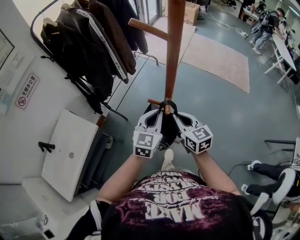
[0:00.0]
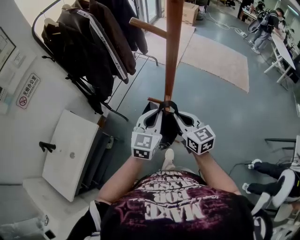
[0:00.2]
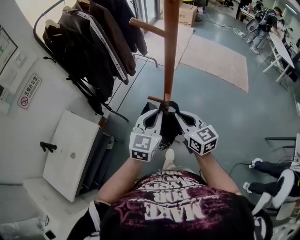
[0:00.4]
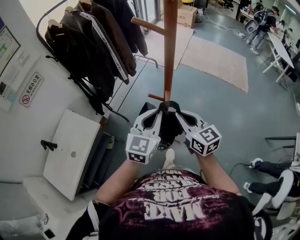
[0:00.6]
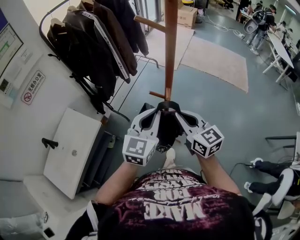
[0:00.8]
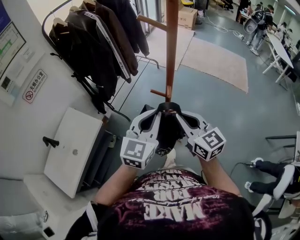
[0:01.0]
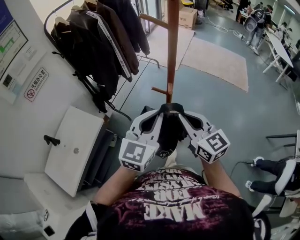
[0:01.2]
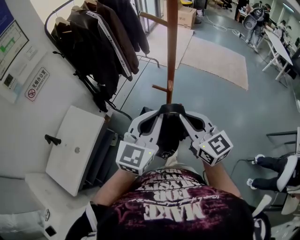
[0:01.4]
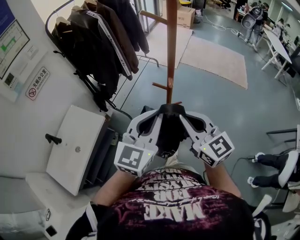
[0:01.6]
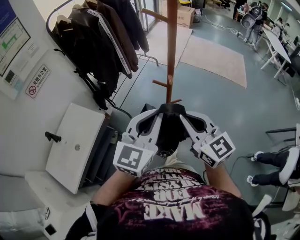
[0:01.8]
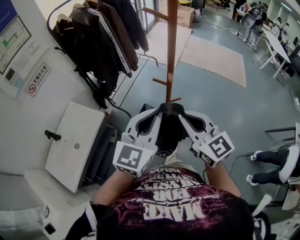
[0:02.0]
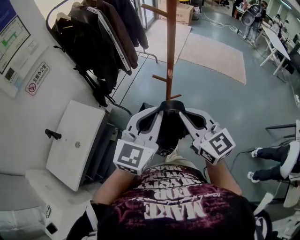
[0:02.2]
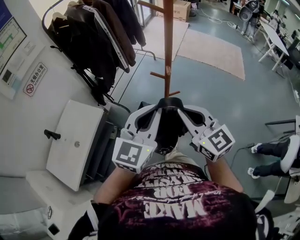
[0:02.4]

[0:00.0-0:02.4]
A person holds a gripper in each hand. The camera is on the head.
0:00.0 to 0:01.2: The left gripper heads backward and upward, covering some 20 cm. Meanwhile the right gripper goes roughly 20 cm upward and backward.
0:01.2 to 0:02.4: The grippers both shift backward by some 5 cm.

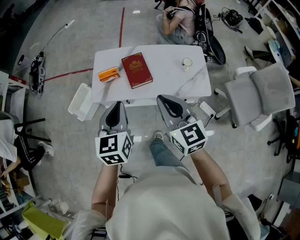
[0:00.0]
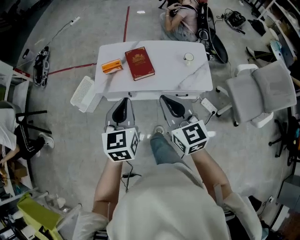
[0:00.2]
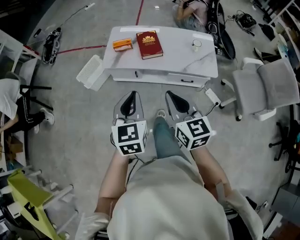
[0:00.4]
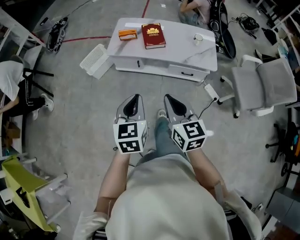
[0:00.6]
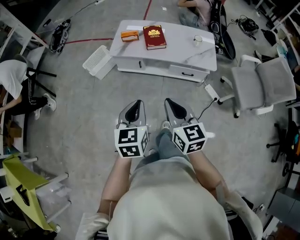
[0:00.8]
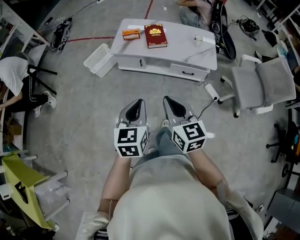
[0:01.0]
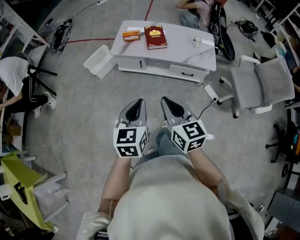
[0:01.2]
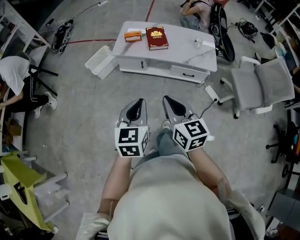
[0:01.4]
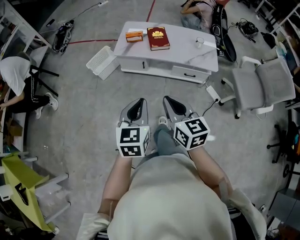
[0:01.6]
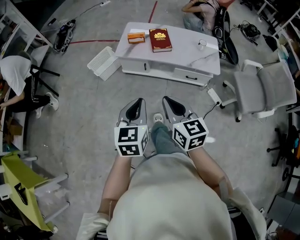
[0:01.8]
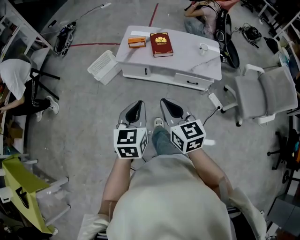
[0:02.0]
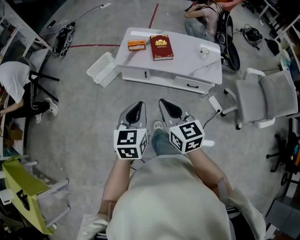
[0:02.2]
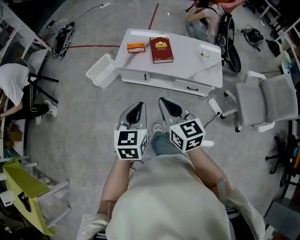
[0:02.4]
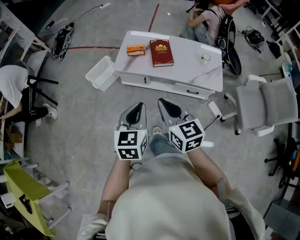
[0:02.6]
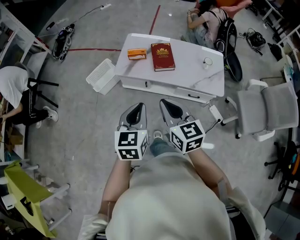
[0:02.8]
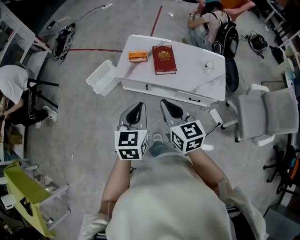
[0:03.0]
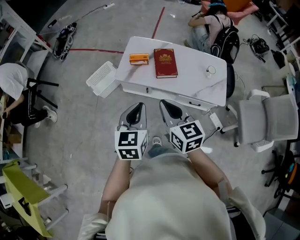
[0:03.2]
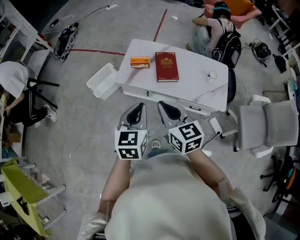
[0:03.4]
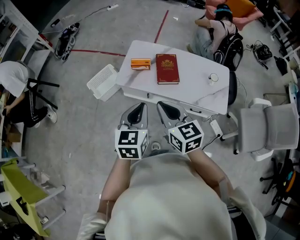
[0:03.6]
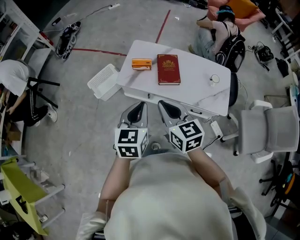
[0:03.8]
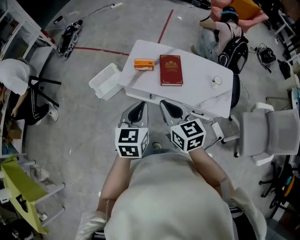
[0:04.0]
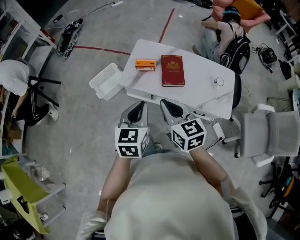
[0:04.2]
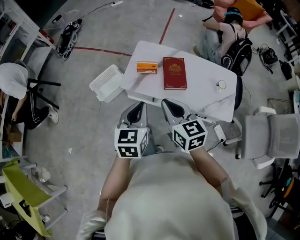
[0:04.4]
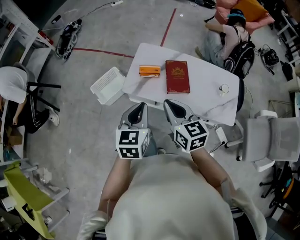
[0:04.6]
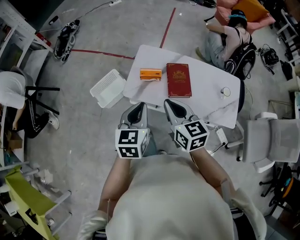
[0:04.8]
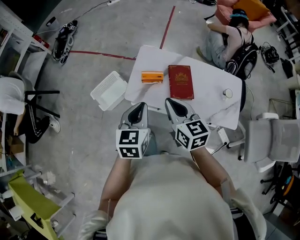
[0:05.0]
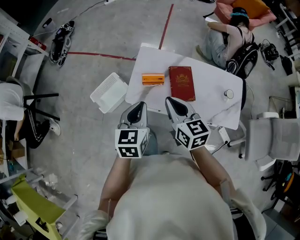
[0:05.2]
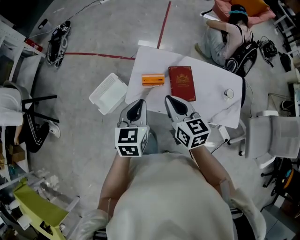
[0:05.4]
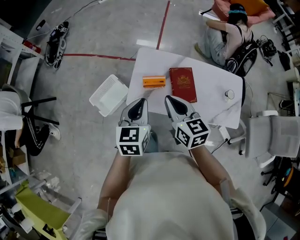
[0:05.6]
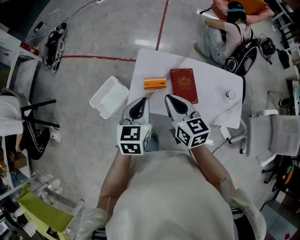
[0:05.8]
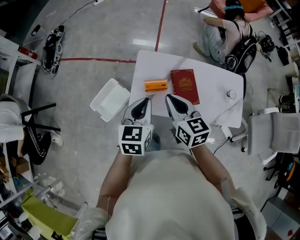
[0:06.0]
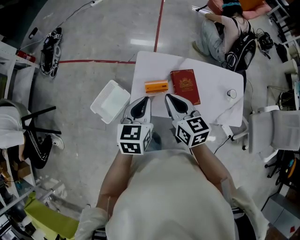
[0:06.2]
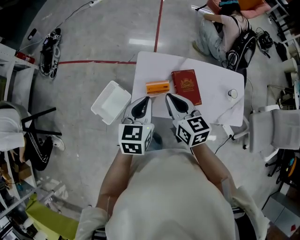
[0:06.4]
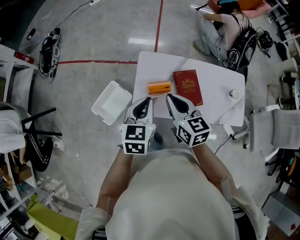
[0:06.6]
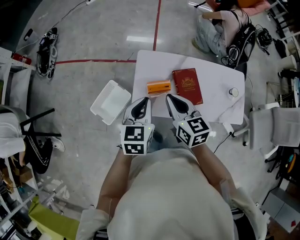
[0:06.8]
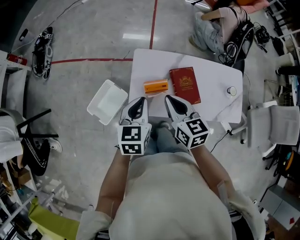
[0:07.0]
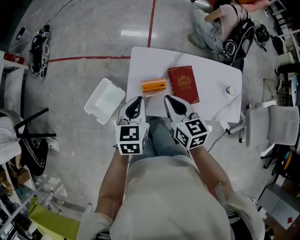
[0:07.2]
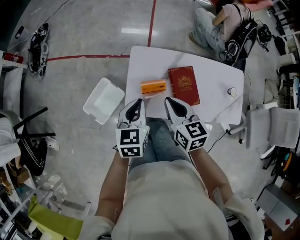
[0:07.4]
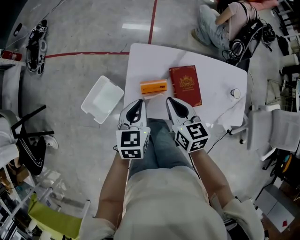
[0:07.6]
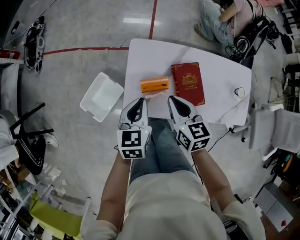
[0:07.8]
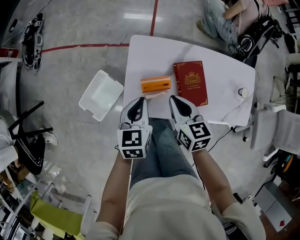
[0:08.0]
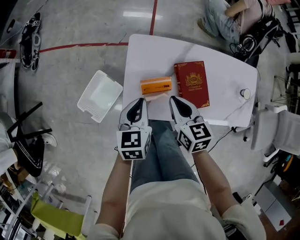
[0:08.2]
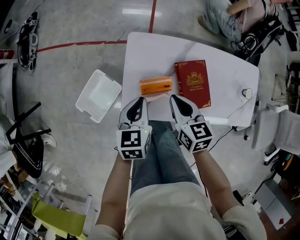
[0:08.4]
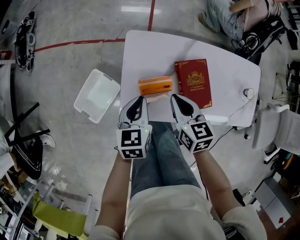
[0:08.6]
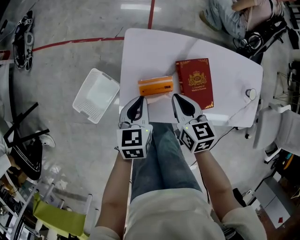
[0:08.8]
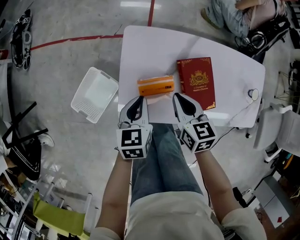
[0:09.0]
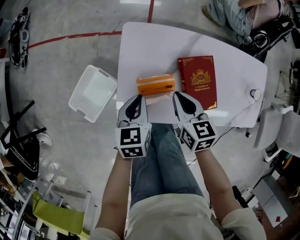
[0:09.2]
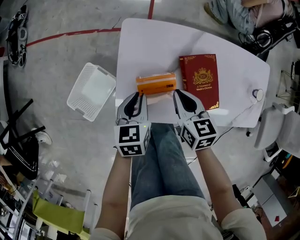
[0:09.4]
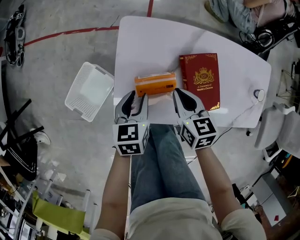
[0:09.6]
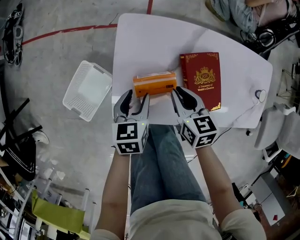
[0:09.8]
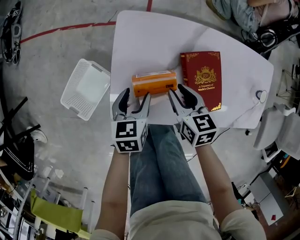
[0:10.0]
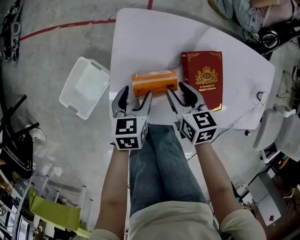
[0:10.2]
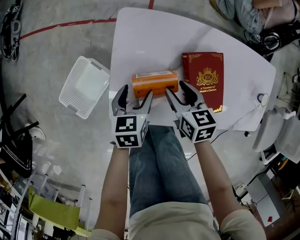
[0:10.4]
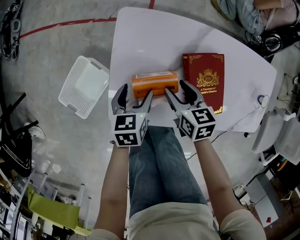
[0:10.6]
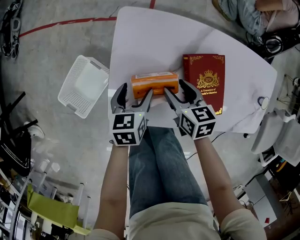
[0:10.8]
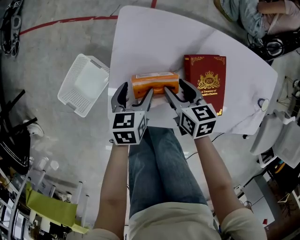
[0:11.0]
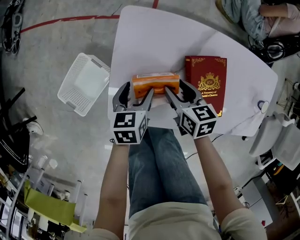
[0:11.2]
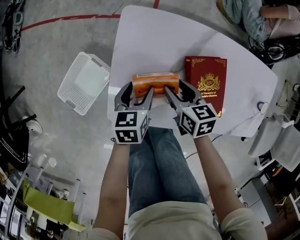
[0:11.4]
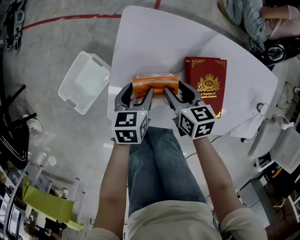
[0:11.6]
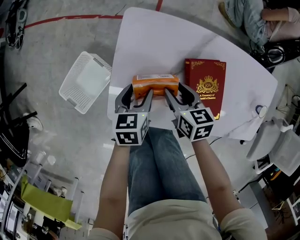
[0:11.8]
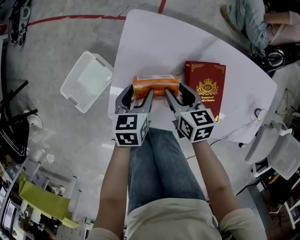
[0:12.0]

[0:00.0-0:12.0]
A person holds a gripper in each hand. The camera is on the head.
0:00.0 to 0:01.6: Both grippers travel together backward, roughly 35 cm.
0:01.6 to 0:03.0: The two grippers go roughly 25 cm forward.
0:03.0 to 0:04.4: Both grippers move forward, some 15 cm.
0:04.4 to 0:06.0: The two grippers go some 25 cm forward.
0:06.0 to 0:07.6: Both grippers travel together downward and forward, approximately 10 cm.
0:07.6 to 0:09.0: The grippers both shift downward by about 15 cm.
0:09.0 to 0:10.4: Both grippers move downward, roughly 10 cm. The right gripper opens; the left gripper opens.
0:10.4 to 0:12.0: The grippers stay close to where they were, moving slightly.

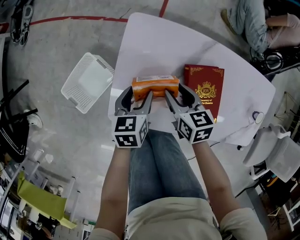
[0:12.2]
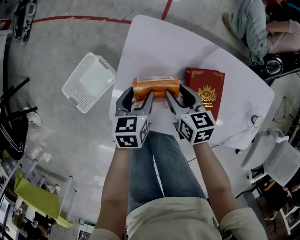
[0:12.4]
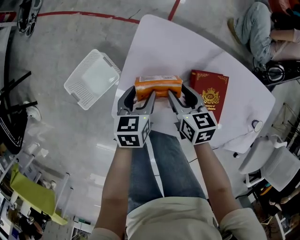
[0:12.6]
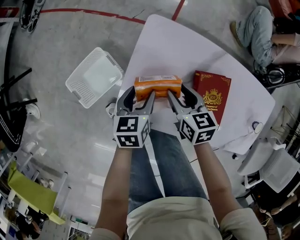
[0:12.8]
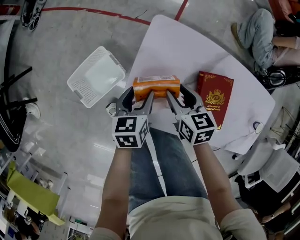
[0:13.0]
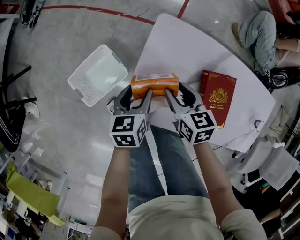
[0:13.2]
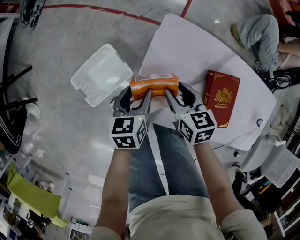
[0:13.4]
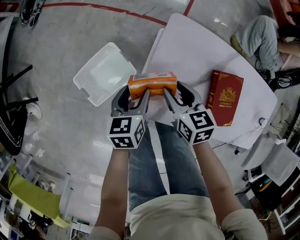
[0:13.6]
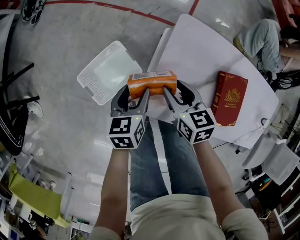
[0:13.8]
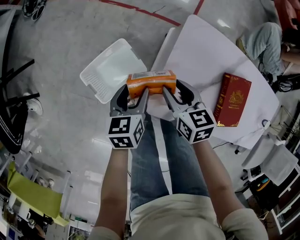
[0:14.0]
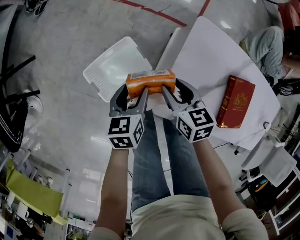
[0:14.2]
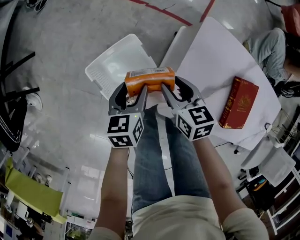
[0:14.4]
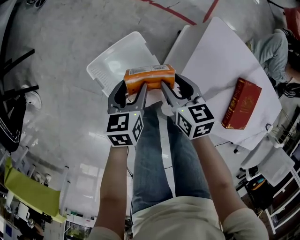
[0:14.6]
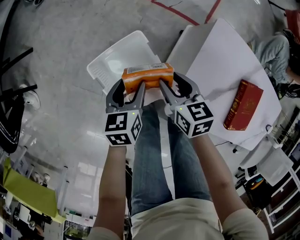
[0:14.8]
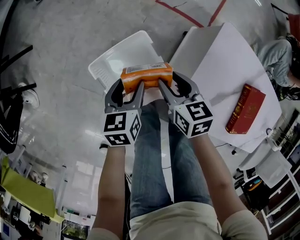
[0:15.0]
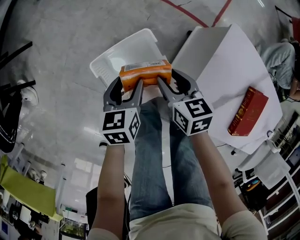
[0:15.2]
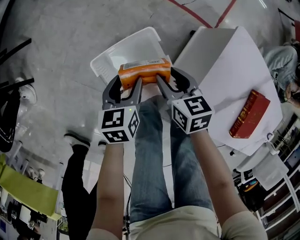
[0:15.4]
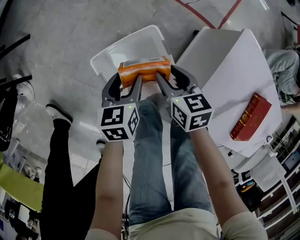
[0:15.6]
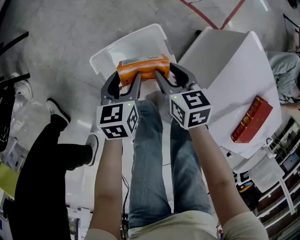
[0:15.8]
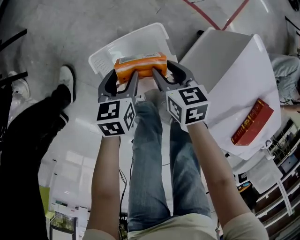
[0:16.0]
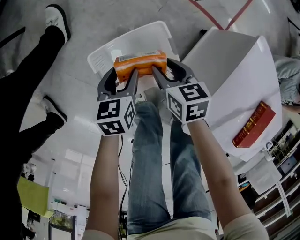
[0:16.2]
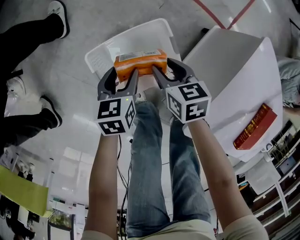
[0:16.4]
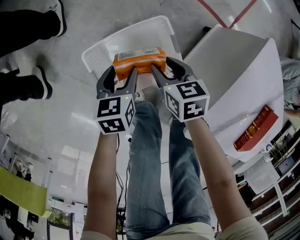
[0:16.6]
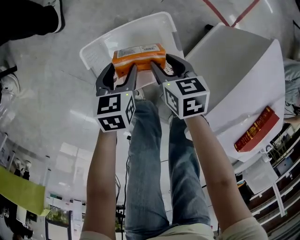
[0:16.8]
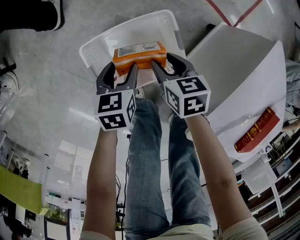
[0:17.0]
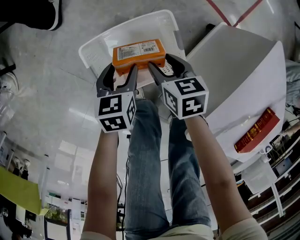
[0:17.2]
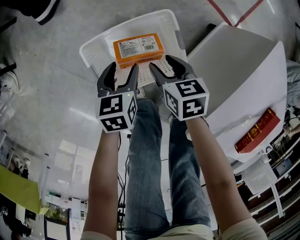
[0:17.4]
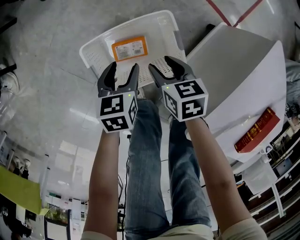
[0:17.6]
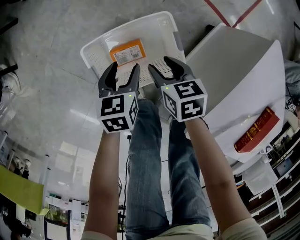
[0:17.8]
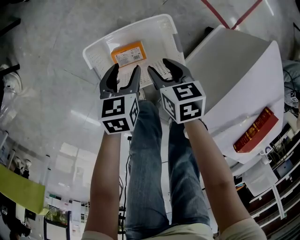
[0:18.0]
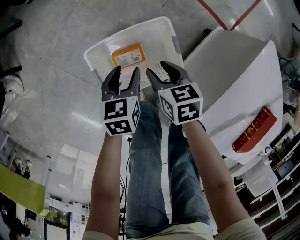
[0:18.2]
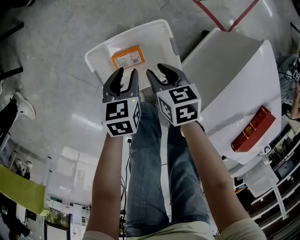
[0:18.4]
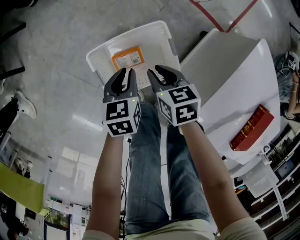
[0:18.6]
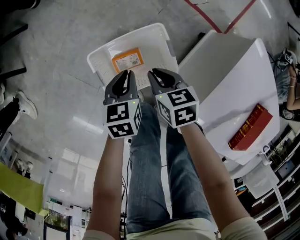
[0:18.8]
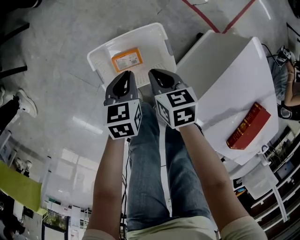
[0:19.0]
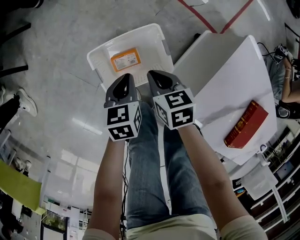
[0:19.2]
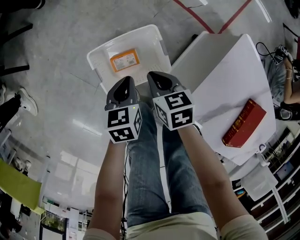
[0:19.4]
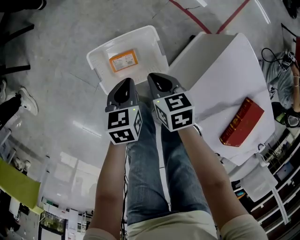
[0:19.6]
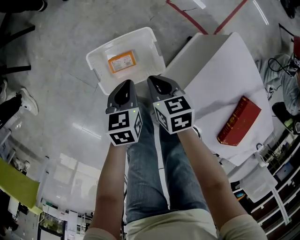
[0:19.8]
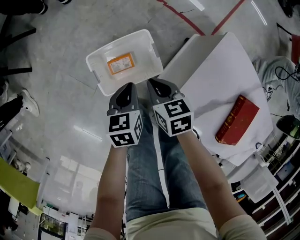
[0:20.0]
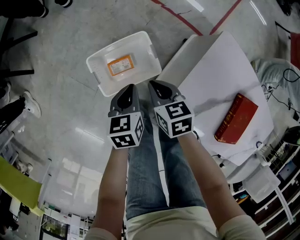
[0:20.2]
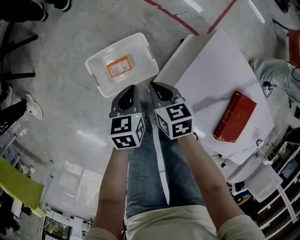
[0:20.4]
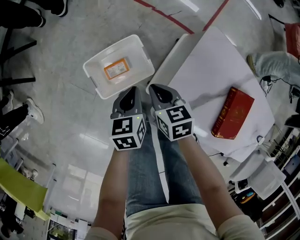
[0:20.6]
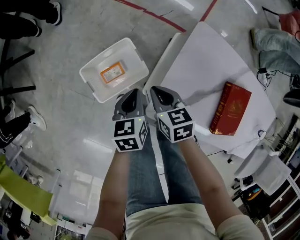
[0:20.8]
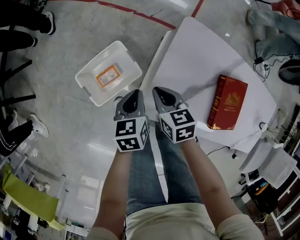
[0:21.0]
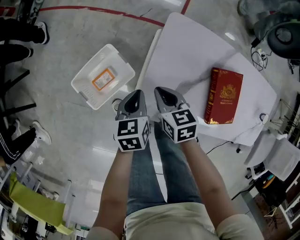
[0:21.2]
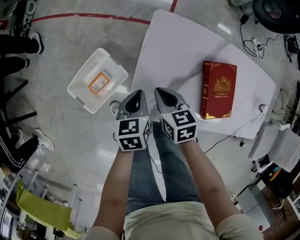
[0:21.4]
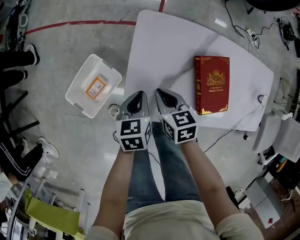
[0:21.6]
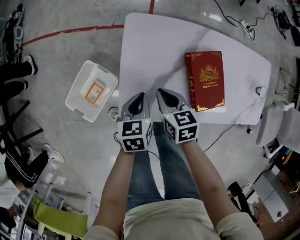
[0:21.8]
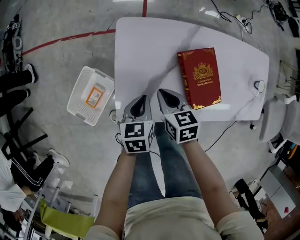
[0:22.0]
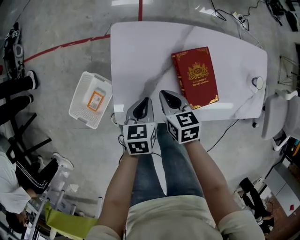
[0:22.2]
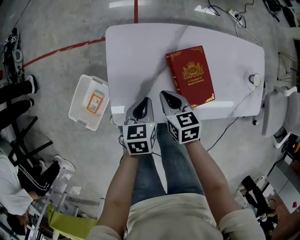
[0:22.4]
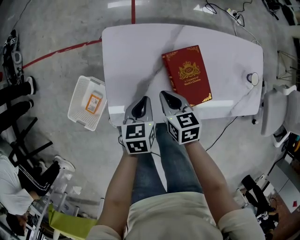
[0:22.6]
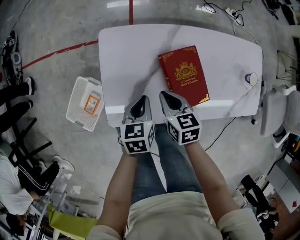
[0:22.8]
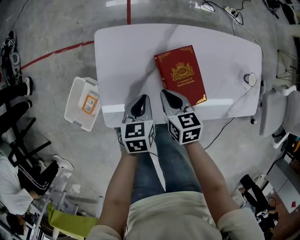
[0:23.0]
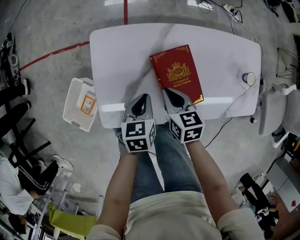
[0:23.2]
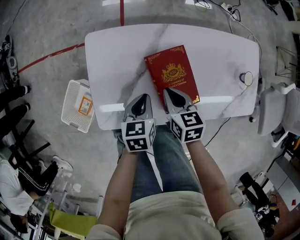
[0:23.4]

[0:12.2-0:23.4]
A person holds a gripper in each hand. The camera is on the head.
0:12.2 to 0:13.8: The grippers both shift to the left by roughly 20 cm.
0:13.8 to 0:15.4: The right gripper travels to the left, downward and forward by about 25 cm; the left gripper heads to the left and downward, covering roughly 20 cm.
0:15.4 to 0:17.0: Both grippers travel together downward, some 15 cm.
0:17.0 to 0:18.6: The two grippers go approximately 5 cm upward. The left gripper closes its fingers.
0:18.6 to 0:20.2: The left gripper is displaced upward, backward and to the right by some 15 cm. Meanwhile the right gripper travels upward and backward by approximately 15 cm.
0:20.2 to 0:21.8: The right gripper changes place by about 30 cm, and rotates roughly 30 degrees, while the left gripper ends up about 30 cm from where it was, and turns by approximately 30 degrees.
0:21.8 to 0:23.4: Both grippers move to the right, roughly 20 cm.
